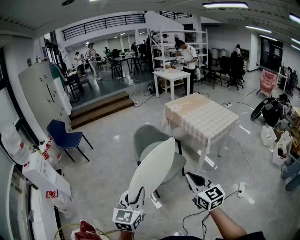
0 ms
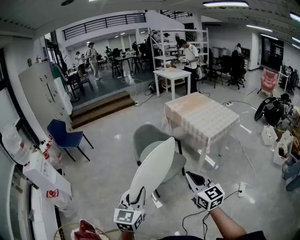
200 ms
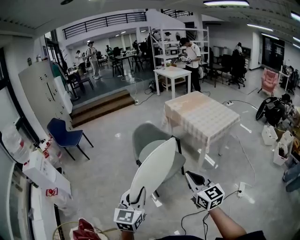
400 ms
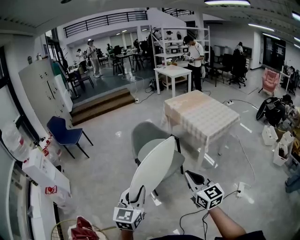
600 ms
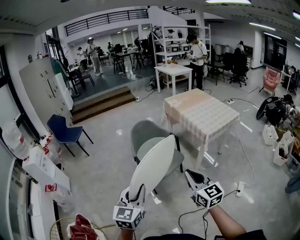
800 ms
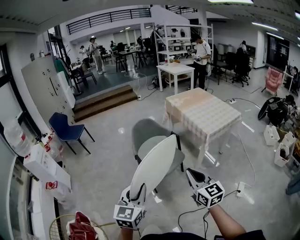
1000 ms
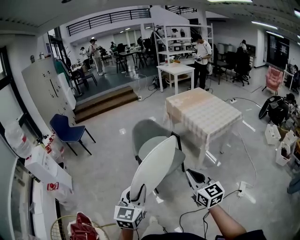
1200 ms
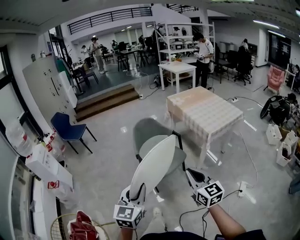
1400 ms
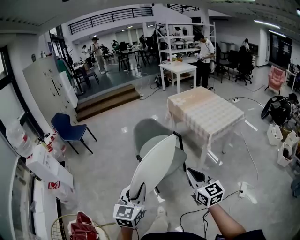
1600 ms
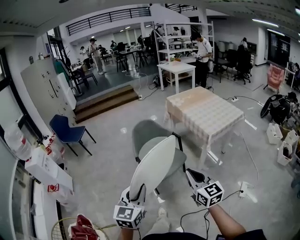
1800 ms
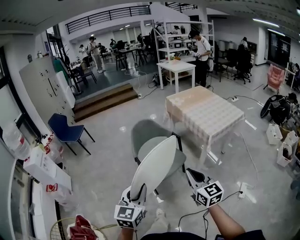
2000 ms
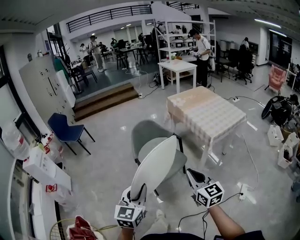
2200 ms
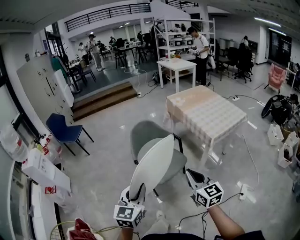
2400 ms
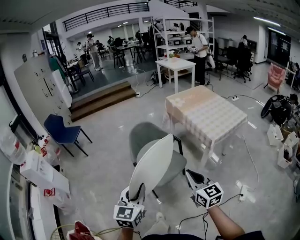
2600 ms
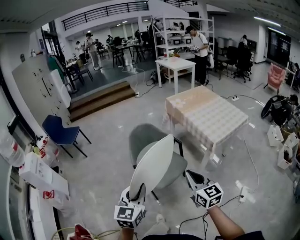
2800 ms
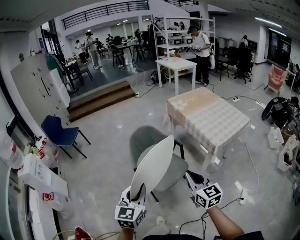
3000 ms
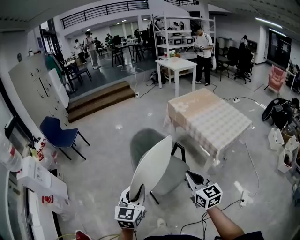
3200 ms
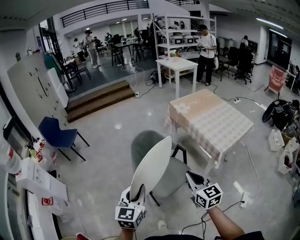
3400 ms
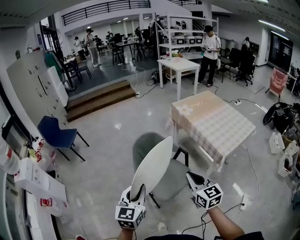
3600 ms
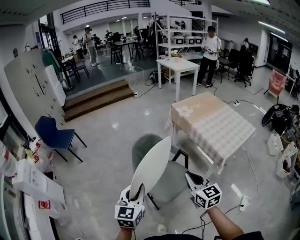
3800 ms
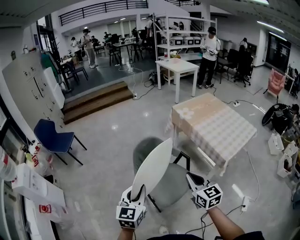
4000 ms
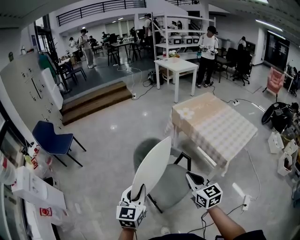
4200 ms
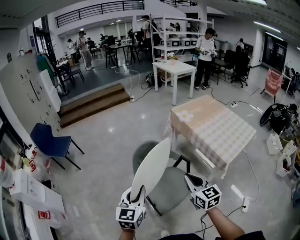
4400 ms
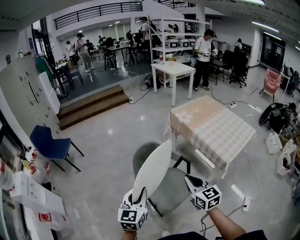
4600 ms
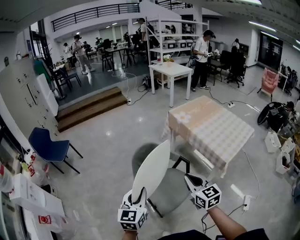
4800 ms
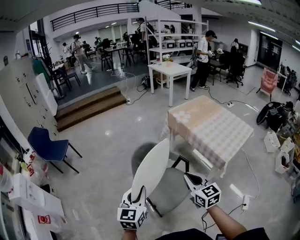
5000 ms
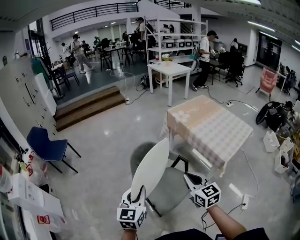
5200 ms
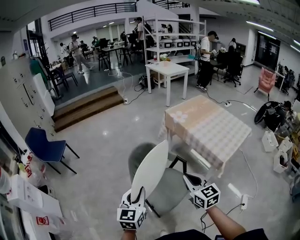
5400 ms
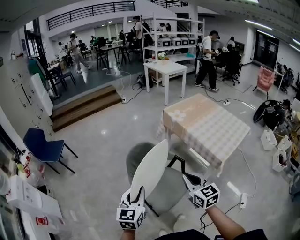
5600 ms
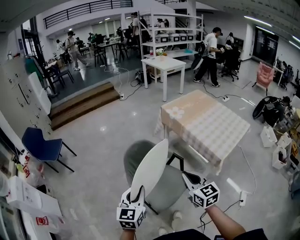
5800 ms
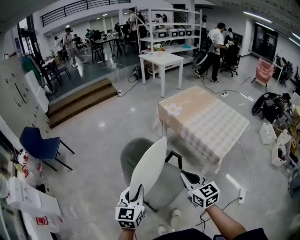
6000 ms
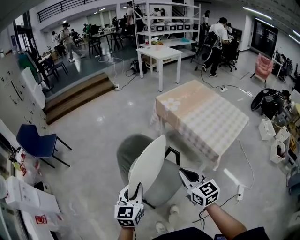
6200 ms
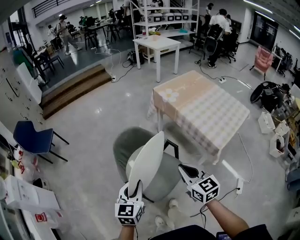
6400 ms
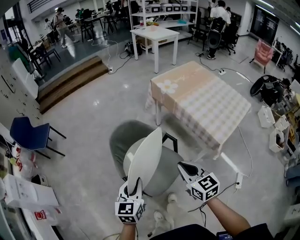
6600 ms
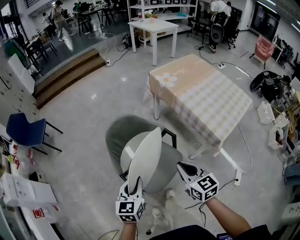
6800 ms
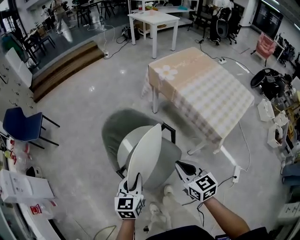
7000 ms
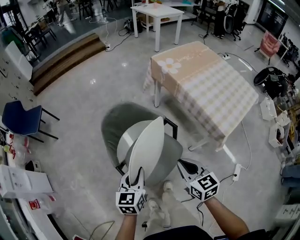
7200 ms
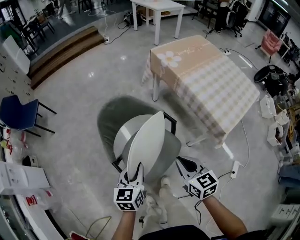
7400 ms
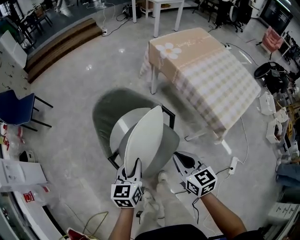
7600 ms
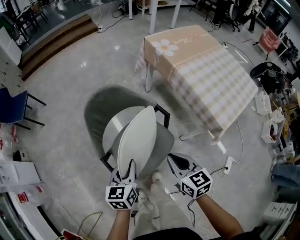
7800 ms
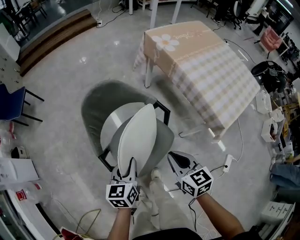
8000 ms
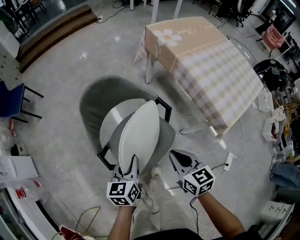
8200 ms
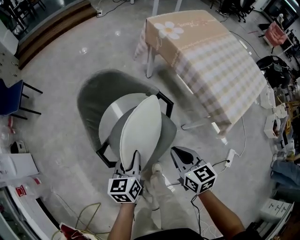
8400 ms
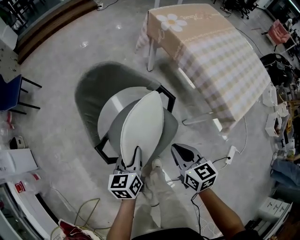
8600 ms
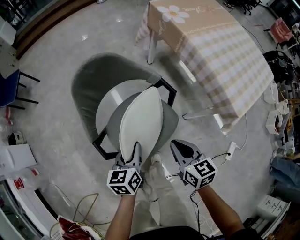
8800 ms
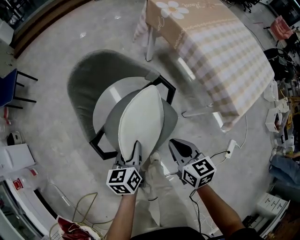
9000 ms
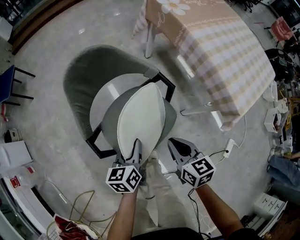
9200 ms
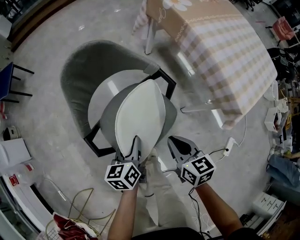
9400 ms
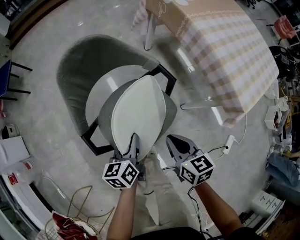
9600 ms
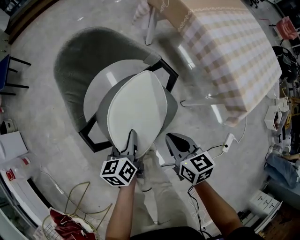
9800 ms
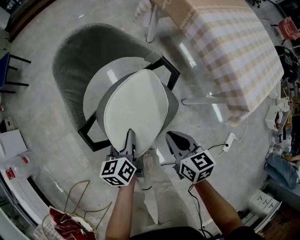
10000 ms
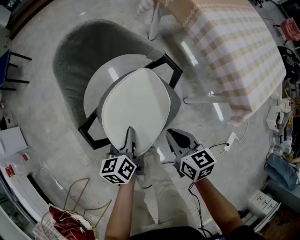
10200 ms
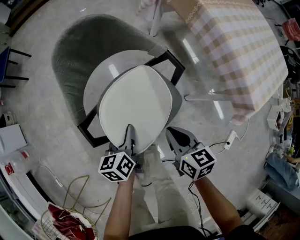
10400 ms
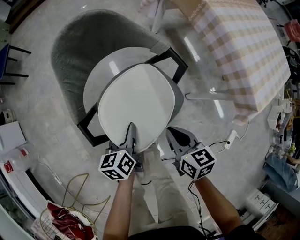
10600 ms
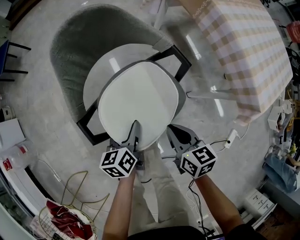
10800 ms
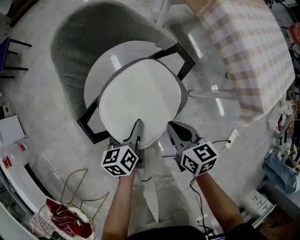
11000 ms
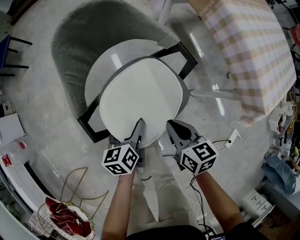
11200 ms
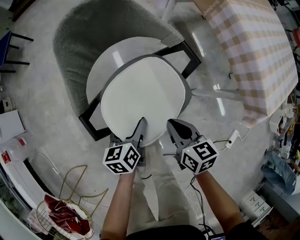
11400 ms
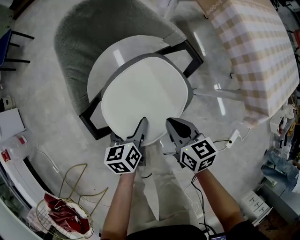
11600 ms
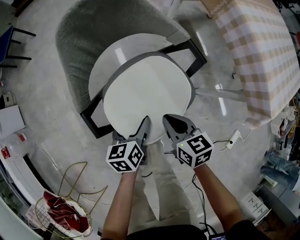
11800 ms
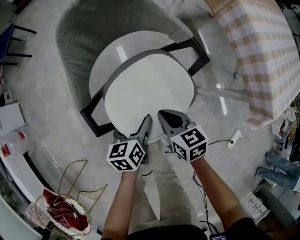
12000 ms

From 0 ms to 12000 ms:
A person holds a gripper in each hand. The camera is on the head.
From 0 ms to 1600 ms: Both grippers travel together to the right, roughly 5 cm.
From 1600 ms to 3000 ms: The two grippers go some 15 cm forward.
From 3000 ms to 4400 ms: Both grippers move forward, about 20 cm.
From 4400 ms to 6000 ms: The left gripper moves about 5 cm.
From 6000 ms to 7600 ms: The two grippers go some 20 cm downward.
From 7600 ms to 9000 ms: The two grippers go approximately 15 cm downward.
From 9000 ms to 10400 ms: Both grippers travel together downward, some 10 cm.
From 10400 ms to 12000 ms: The left gripper is displaced downward by some 5 cm, and opens up. Meanwhile the right gripper shifts roughly 10 cm downward and to the left.

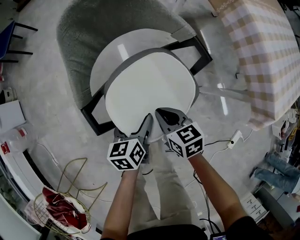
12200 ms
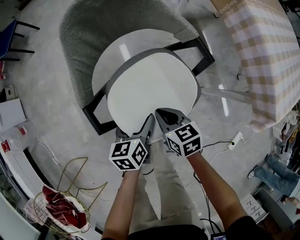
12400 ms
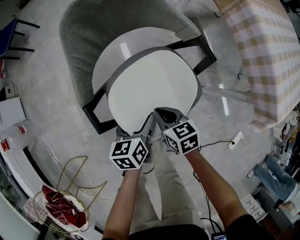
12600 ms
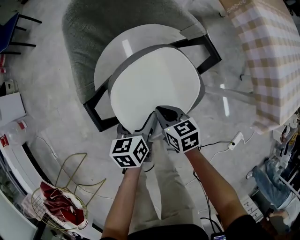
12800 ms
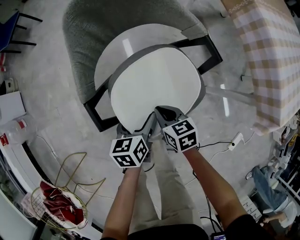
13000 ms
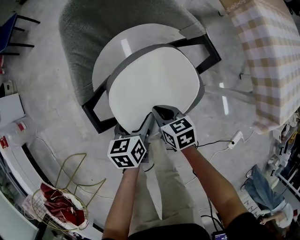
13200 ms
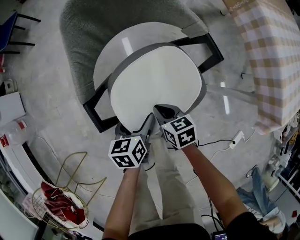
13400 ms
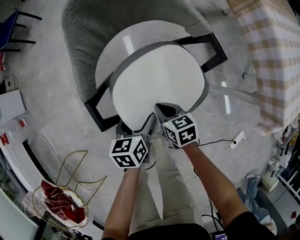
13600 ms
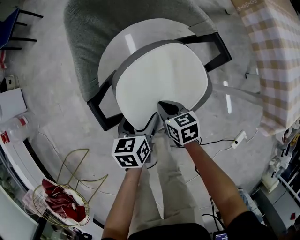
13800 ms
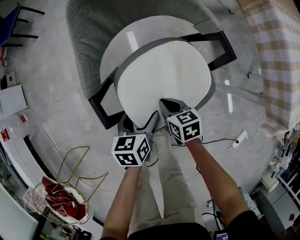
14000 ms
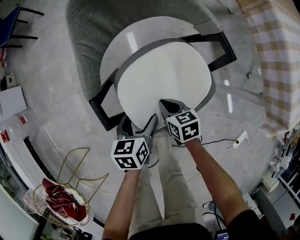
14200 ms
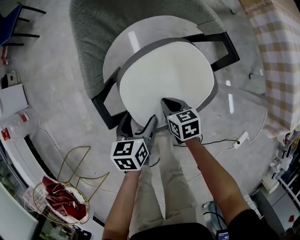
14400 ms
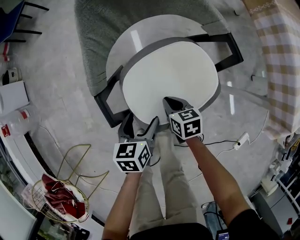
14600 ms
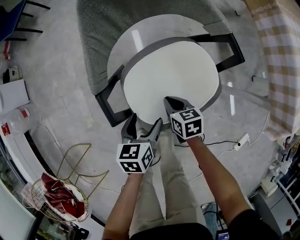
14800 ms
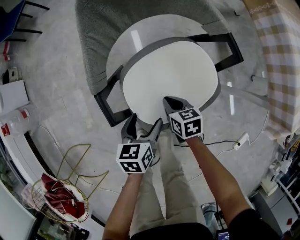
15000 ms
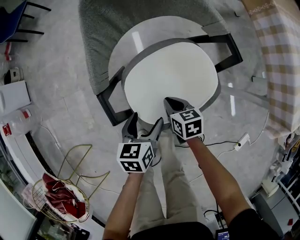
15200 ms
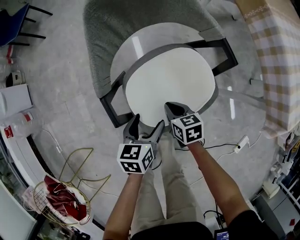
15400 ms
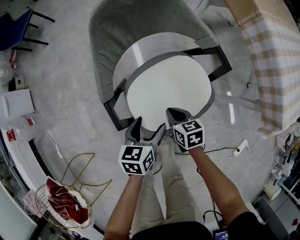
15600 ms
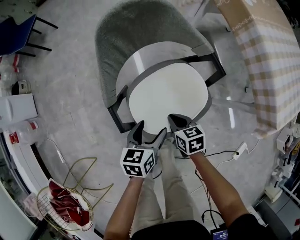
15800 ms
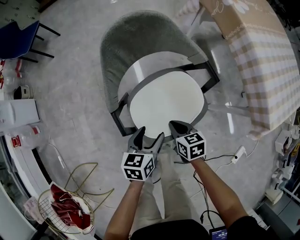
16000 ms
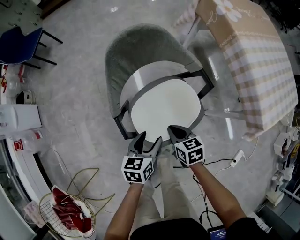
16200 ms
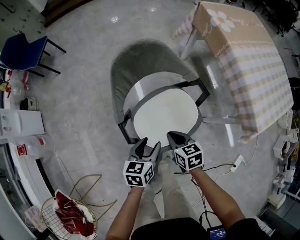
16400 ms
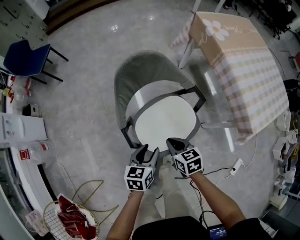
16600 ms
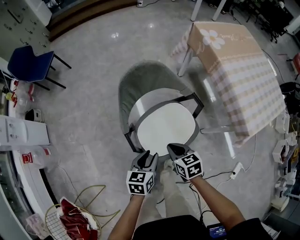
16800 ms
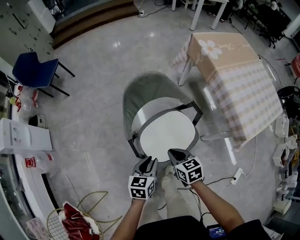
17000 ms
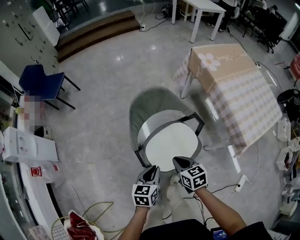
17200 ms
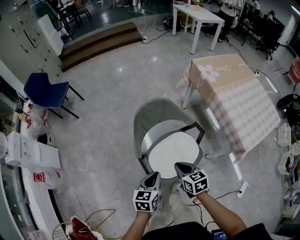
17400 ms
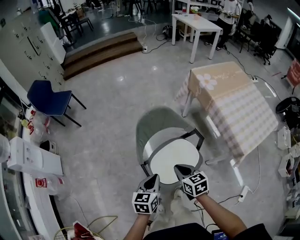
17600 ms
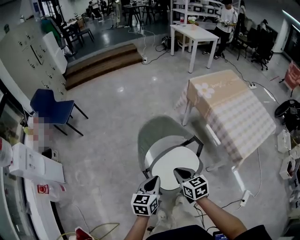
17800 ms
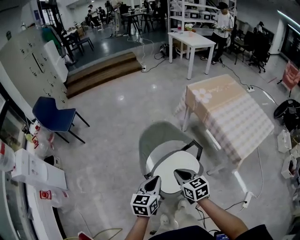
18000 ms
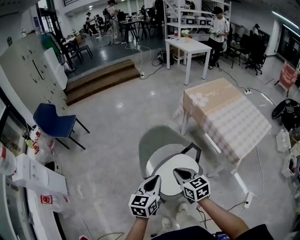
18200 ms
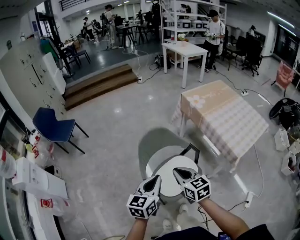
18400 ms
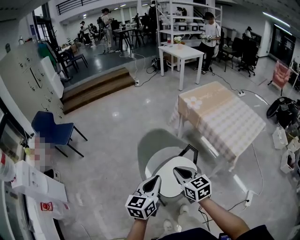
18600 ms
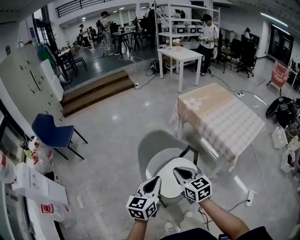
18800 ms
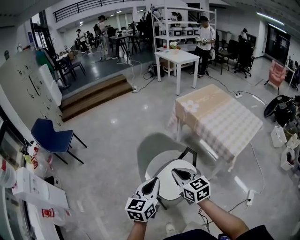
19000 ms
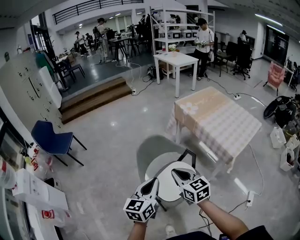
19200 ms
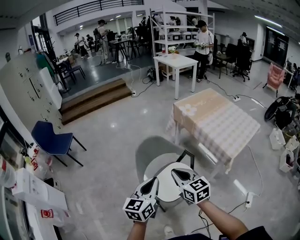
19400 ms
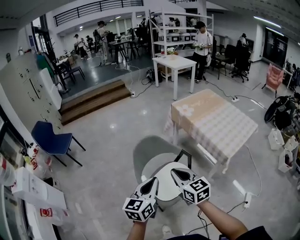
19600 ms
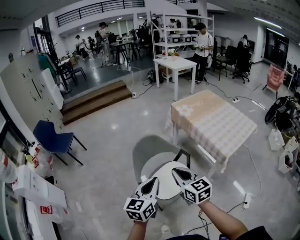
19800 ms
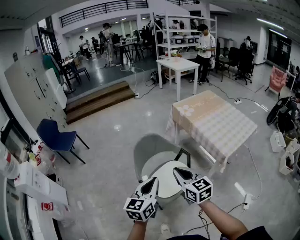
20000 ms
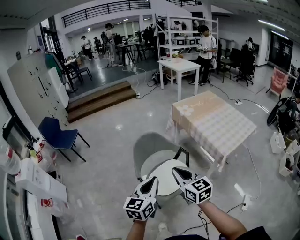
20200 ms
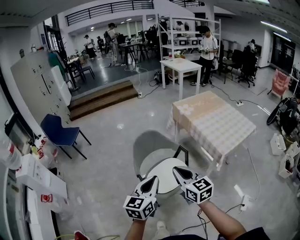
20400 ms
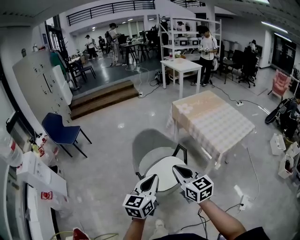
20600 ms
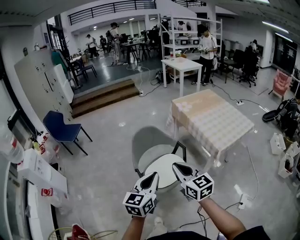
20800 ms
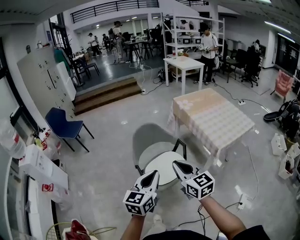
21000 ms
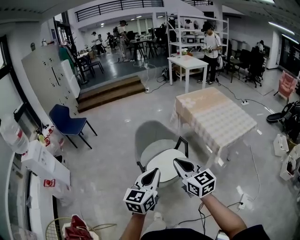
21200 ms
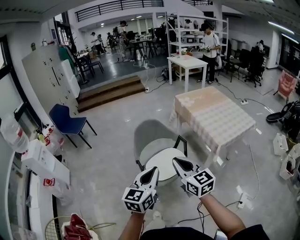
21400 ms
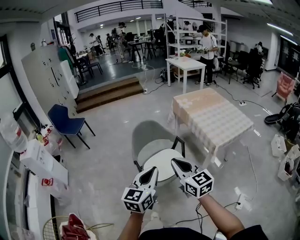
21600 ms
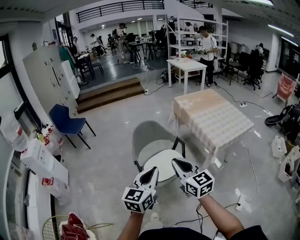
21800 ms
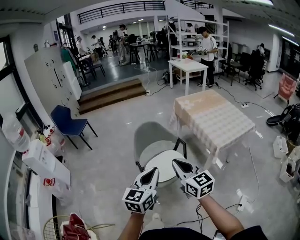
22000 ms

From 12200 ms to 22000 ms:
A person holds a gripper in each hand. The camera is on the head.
From 12200 ms to 13600 ms: The right gripper travels downward by roughly 10 cm.
From 13600 ms to 15000 ms: The grippers move only a little.
From 15000 ms to 16400 ms: Both grippers travel together upward, roughly 20 cm. The left gripper closes up.
From 16400 ms to 17800 ms: The two grippers go about 20 cm upward. The left gripper closes.
From 17800 ms to 19200 ms: The grippers both shift upward by roughly 15 cm.
From 19200 ms to 20600 ms: The left gripper heads backward and to the right, covering some 15 cm. The right gripper goes approximately 20 cm backward, to the right and upward.
From 20600 ms to 22000 ms: The two grippers go about 10 cm backward.

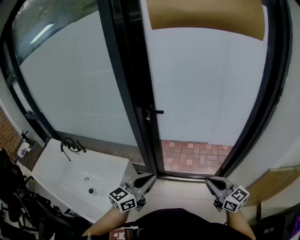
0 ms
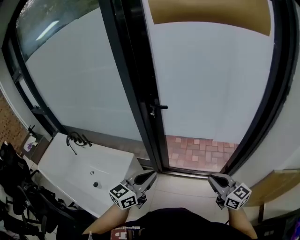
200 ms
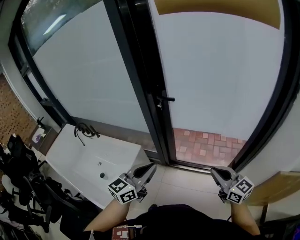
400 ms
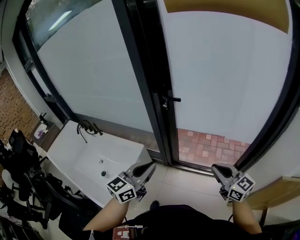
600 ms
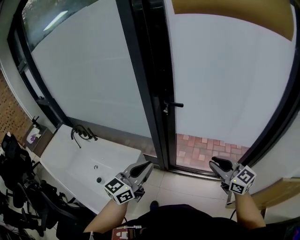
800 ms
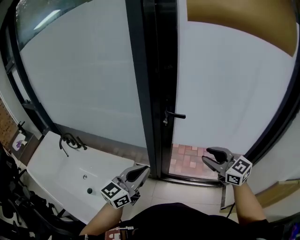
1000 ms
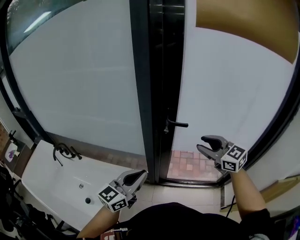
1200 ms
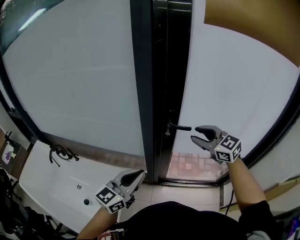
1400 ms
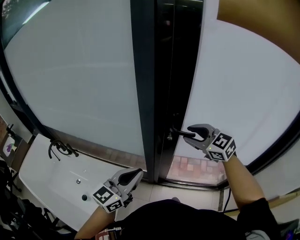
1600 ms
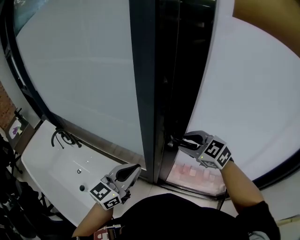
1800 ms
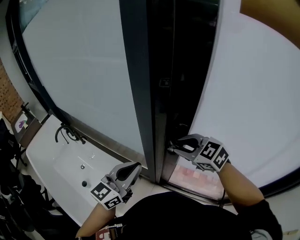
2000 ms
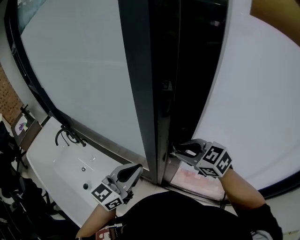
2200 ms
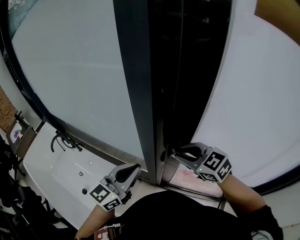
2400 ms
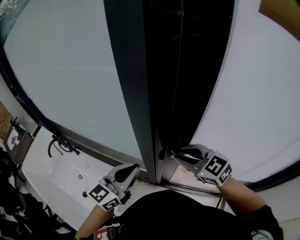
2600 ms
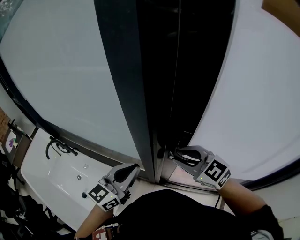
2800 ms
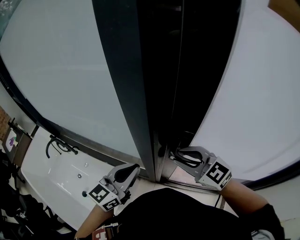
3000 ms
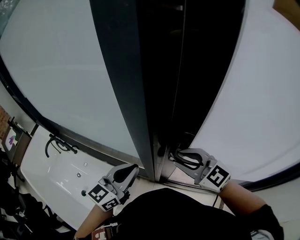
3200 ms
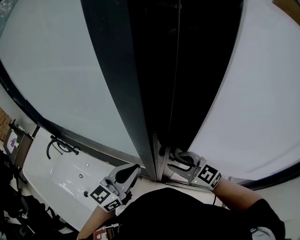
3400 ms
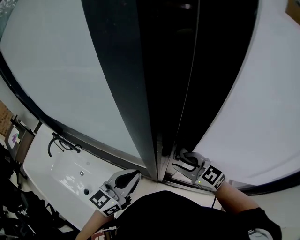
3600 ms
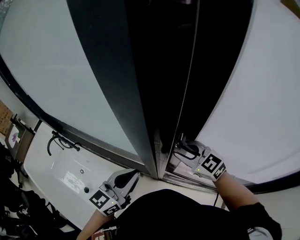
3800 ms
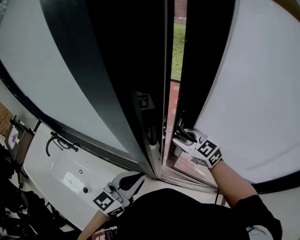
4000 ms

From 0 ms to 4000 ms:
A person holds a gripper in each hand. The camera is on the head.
From 0 ms to 1400 ms: The right gripper goes some 35 cm forward and to the left, rotates some 30 degrees, and opens up; the left gripper heads forward and to the left, covering approximately 25 cm.
From 1400 ms to 2600 ms: The left gripper heads forward, covering some 15 cm. The right gripper moves forward, downward and to the left, about 15 cm.
From 2600 ms to 4000 ms: The right gripper shifts approximately 15 cm forward and downward.
